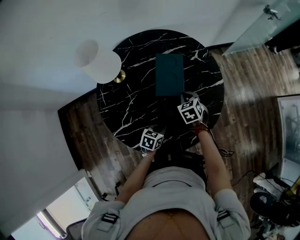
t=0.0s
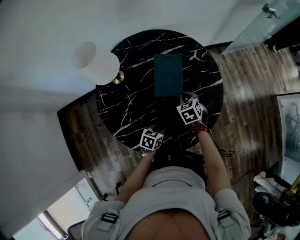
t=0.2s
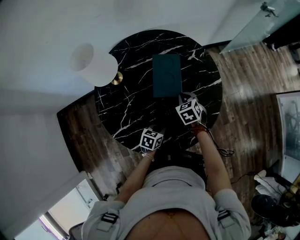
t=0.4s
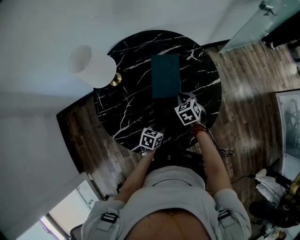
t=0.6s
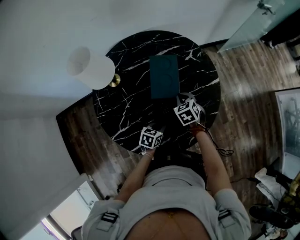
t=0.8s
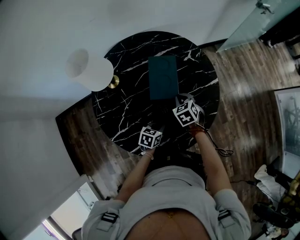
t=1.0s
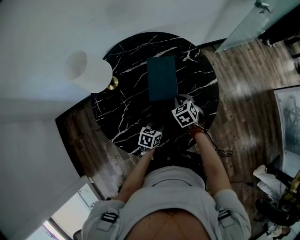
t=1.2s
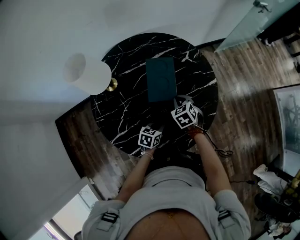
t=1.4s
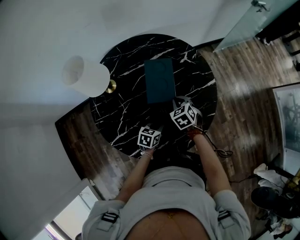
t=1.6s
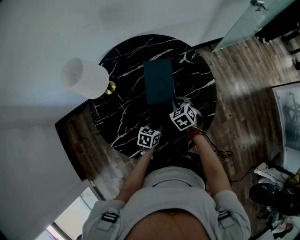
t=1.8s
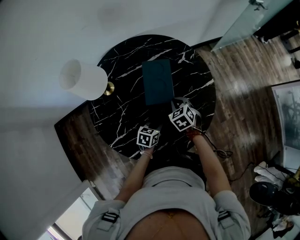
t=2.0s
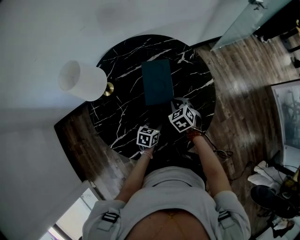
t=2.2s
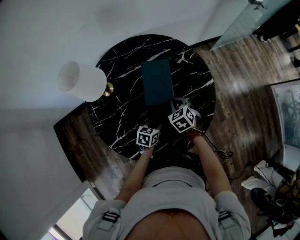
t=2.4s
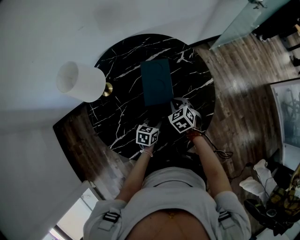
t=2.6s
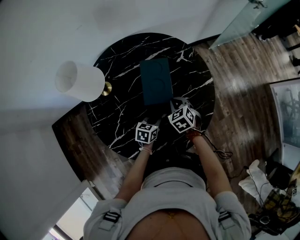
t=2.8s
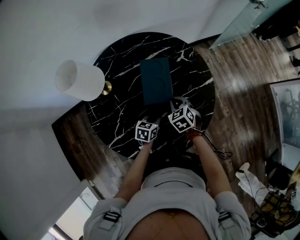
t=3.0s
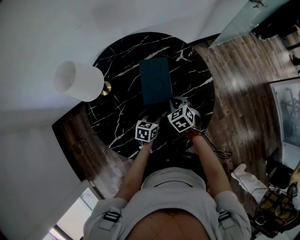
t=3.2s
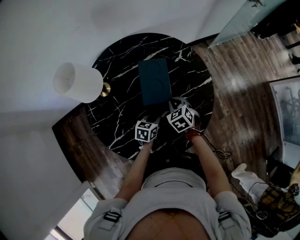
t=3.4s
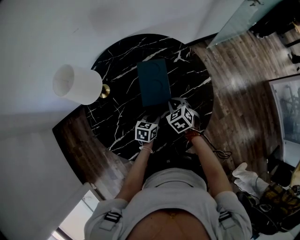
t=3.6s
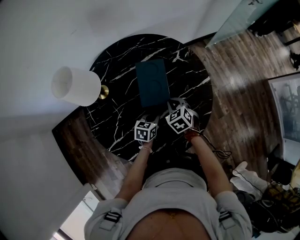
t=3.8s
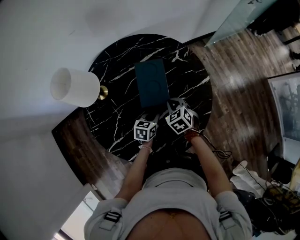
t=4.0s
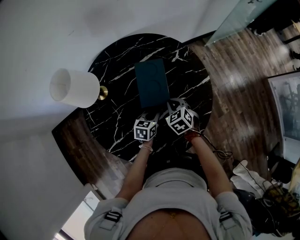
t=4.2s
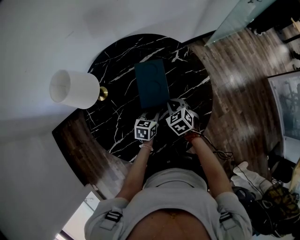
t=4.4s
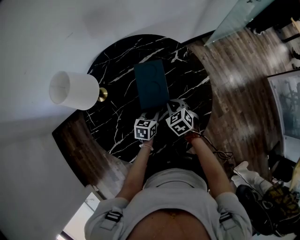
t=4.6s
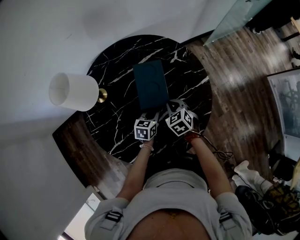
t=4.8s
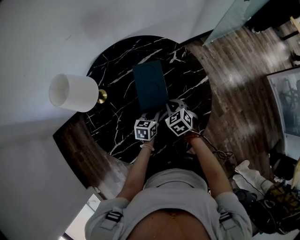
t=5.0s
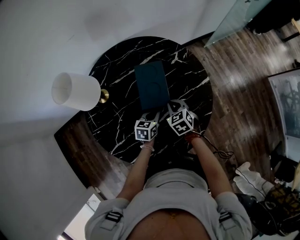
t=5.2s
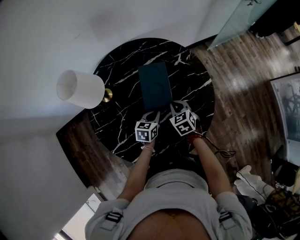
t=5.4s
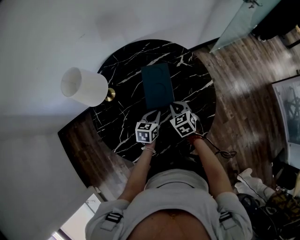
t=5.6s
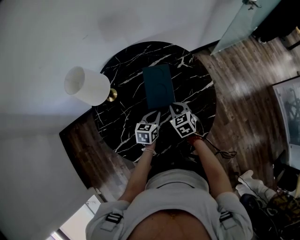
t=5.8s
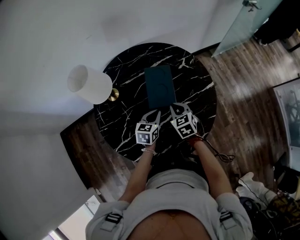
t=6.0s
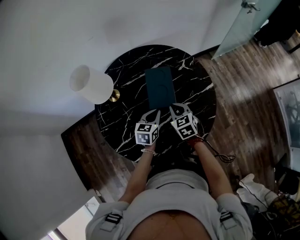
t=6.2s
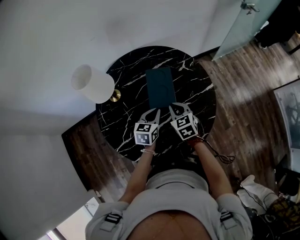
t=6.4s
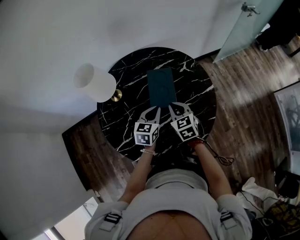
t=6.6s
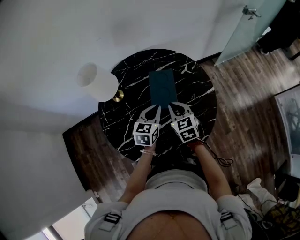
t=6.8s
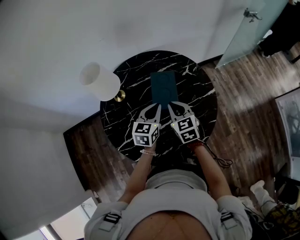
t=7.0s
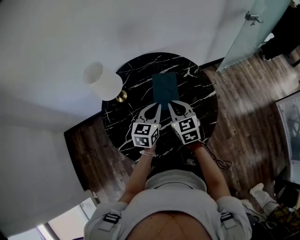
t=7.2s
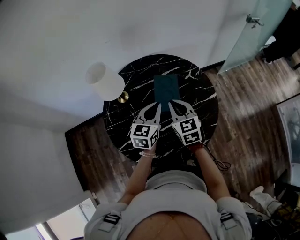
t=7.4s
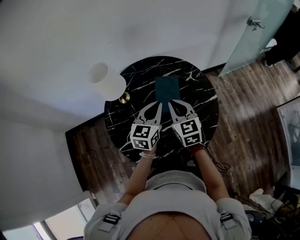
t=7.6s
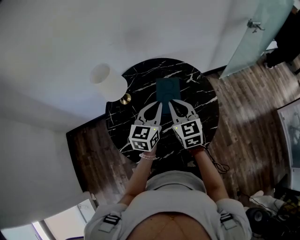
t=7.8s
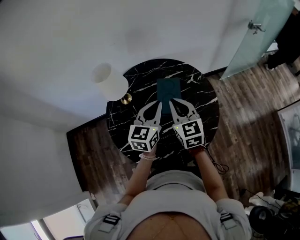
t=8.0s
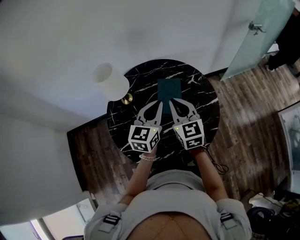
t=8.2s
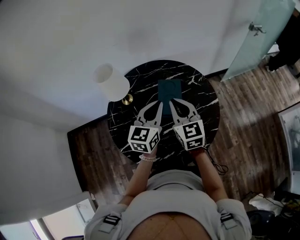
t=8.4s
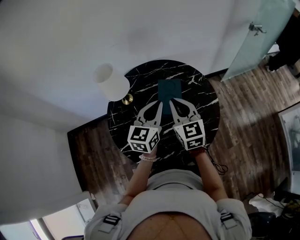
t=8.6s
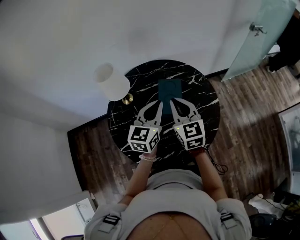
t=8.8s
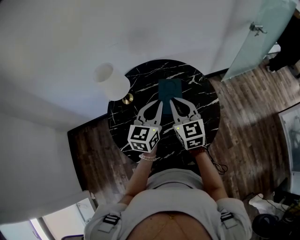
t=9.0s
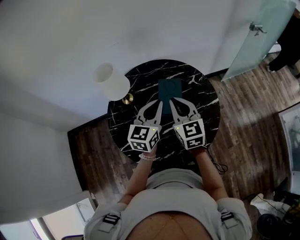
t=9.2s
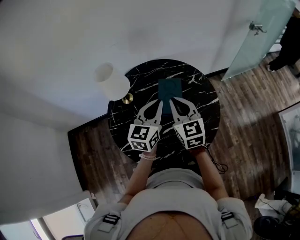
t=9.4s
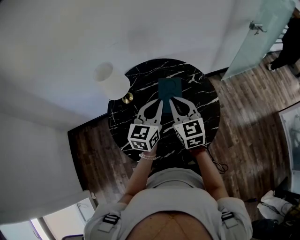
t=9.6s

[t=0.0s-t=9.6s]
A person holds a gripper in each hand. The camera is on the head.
t=0.0s to t=1.6s: The grippers move only a little.
t=1.6s to t=3.2s: The left gripper shifts some 5 cm forward.
t=3.2s to t=4.8s: The grippers make only small movements.
t=4.8s to t=6.4s: The left gripper moves upward, some 10 cm; the right gripper heads upward, covering some 10 cm.
t=6.4s to t=8.0s: The two grippers go some 20 cm upward. The left gripper swivels about 20 degrees, while the right gripper swivels some 20 degrees.
t=8.0s to t=9.6s: The grippers make only small movements.

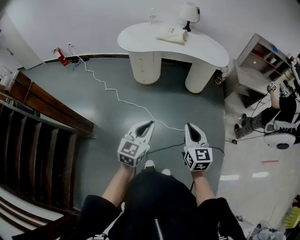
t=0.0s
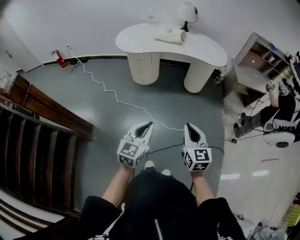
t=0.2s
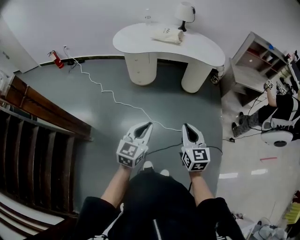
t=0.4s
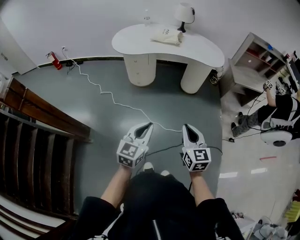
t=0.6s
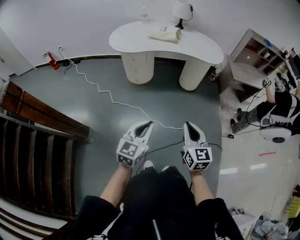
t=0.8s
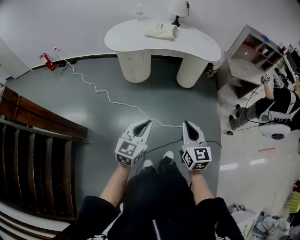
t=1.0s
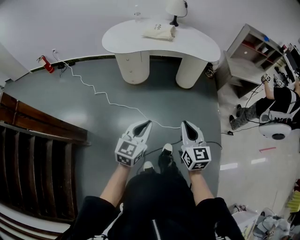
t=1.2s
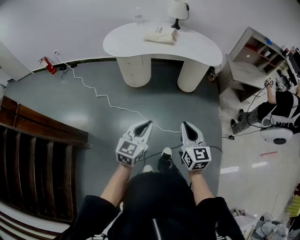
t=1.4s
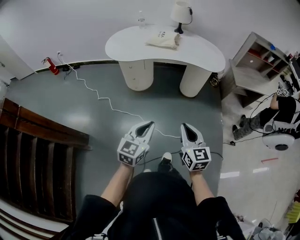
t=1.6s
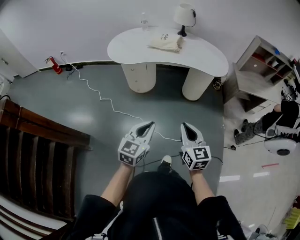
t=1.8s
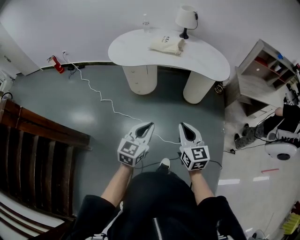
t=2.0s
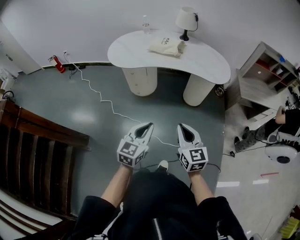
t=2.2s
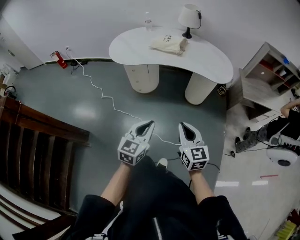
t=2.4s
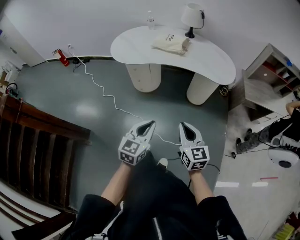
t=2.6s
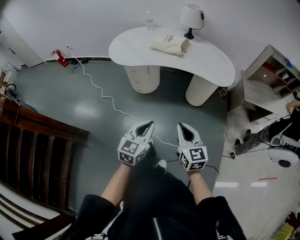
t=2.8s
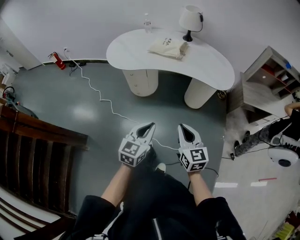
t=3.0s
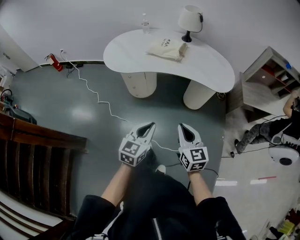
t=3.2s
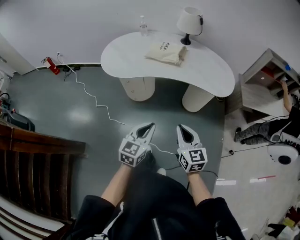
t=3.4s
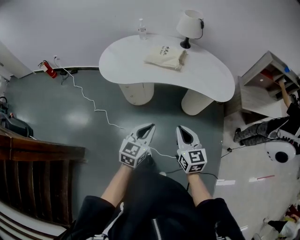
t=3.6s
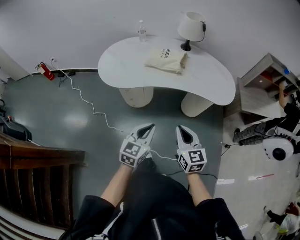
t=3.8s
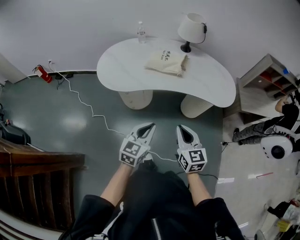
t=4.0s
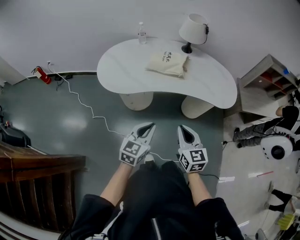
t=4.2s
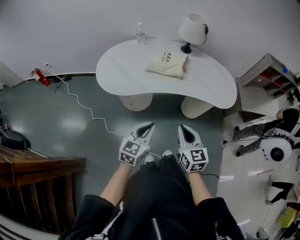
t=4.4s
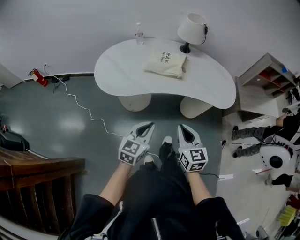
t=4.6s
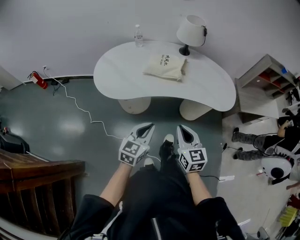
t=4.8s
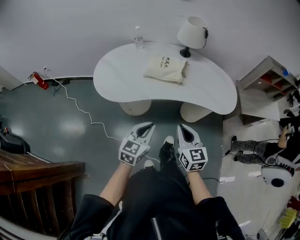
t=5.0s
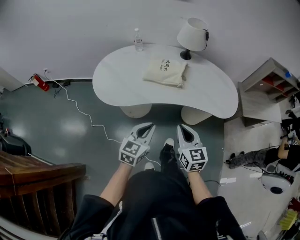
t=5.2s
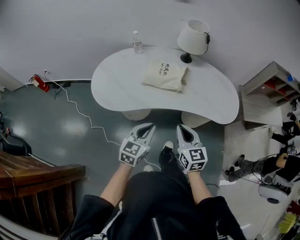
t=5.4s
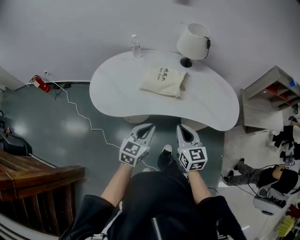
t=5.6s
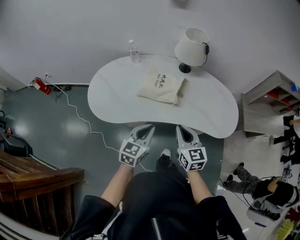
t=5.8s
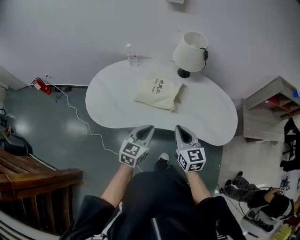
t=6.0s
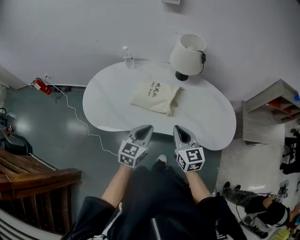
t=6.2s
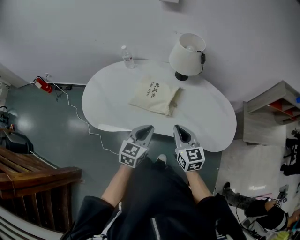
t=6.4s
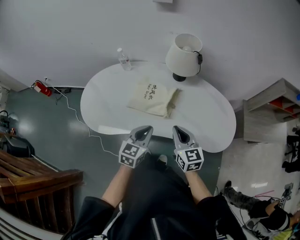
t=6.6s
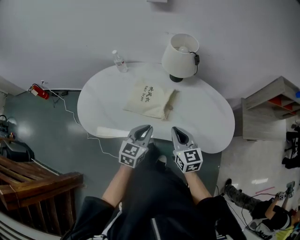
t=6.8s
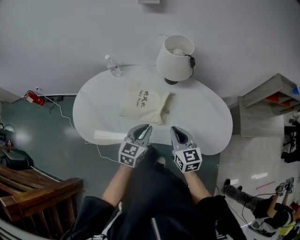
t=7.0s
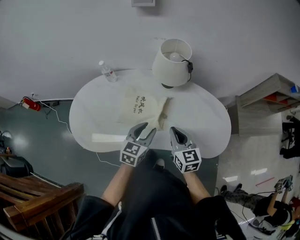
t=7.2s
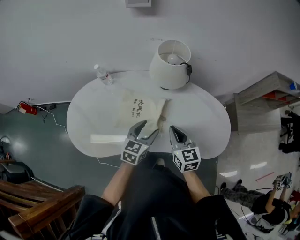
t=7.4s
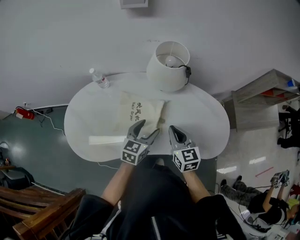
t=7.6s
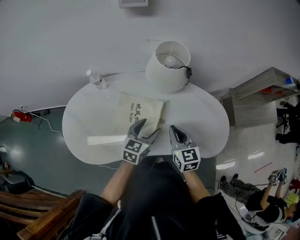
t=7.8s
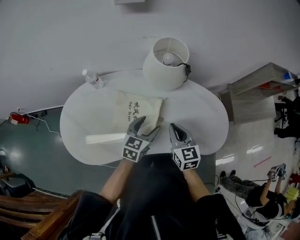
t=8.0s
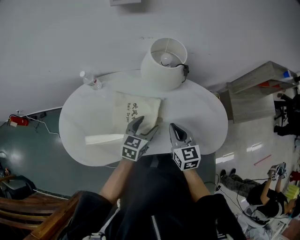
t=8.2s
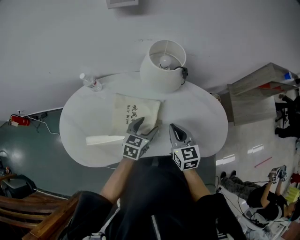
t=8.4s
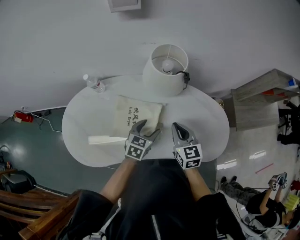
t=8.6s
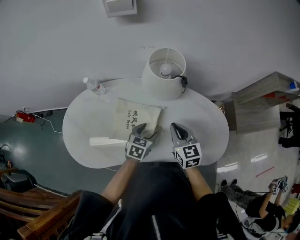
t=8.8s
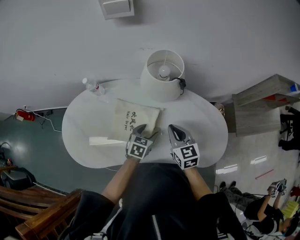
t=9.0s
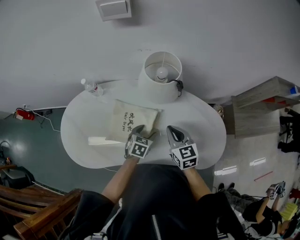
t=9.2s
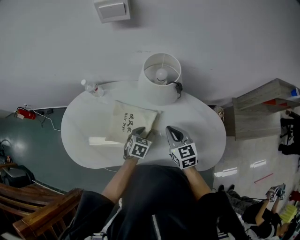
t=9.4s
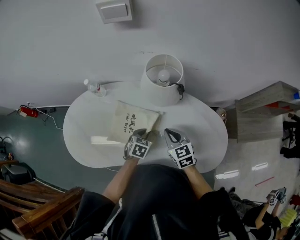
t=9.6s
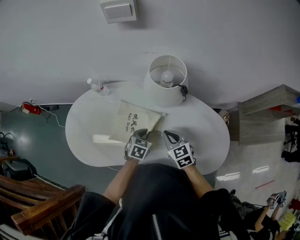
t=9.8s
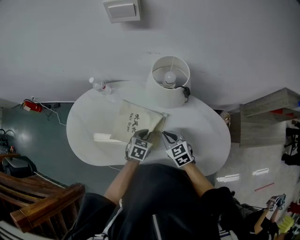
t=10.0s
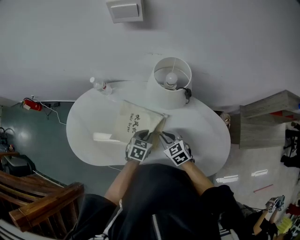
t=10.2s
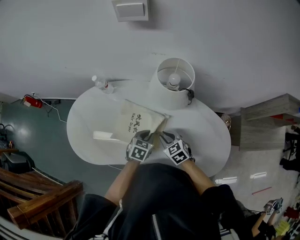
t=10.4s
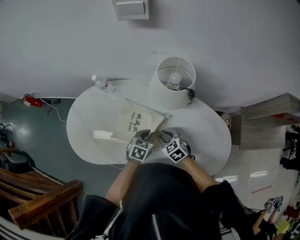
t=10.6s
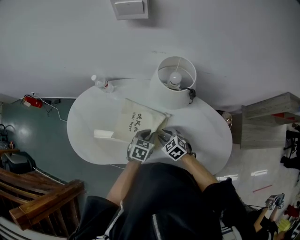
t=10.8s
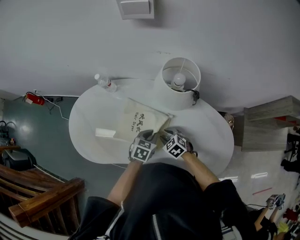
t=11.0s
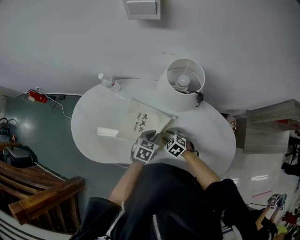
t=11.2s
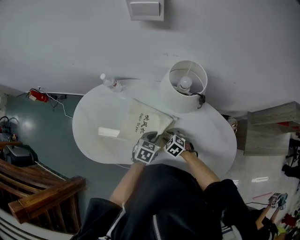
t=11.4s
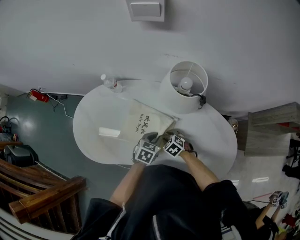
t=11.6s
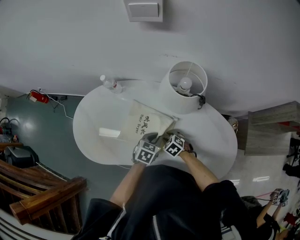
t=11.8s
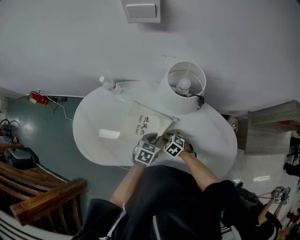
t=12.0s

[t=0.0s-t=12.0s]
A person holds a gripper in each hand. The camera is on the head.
t=0.0s to t=1.6s: Both grippers travel together forward, roughly 10 cm.
t=1.6s to t=3.0s: The two grippers go roughly 15 cm forward.
t=3.0s to t=4.4s: The two grippers go approximately 20 cm forward and to the left.
t=4.4s to t=6.0s: Both grippers move forward, some 25 cm.
t=6.0s to t=7.6s: The grippers both shift forward by roughly 20 cm. The left gripper opens its fingers.
t=7.6s to t=9.0s: The left gripper moves downward, about 10 cm, and rotates some 20 degrees; the right gripper shifts approximately 5 cm forward.
t=9.0s to t=10.4s: The left gripper closes; the right gripper travels downward and to the left by about 10 cm, and swivels roughly 30 degrees.
t=10.4s to t=12.0s: The right gripper travels downward by roughly 10 cm, and turns by about 20 degrees.

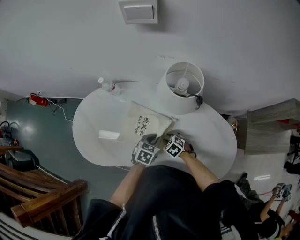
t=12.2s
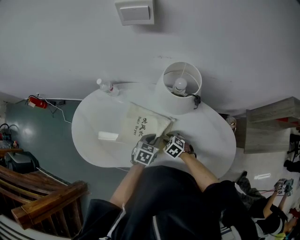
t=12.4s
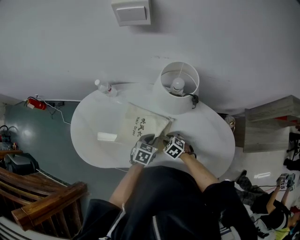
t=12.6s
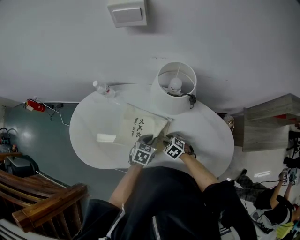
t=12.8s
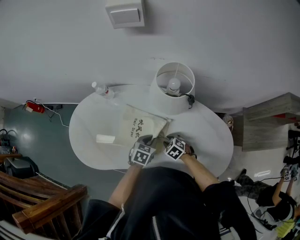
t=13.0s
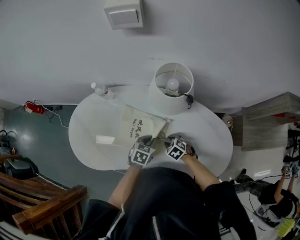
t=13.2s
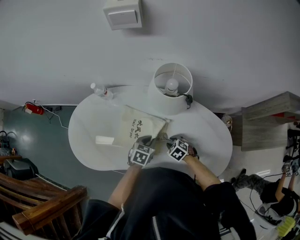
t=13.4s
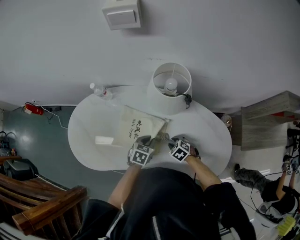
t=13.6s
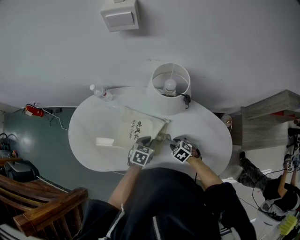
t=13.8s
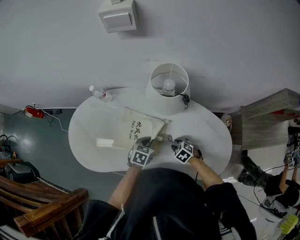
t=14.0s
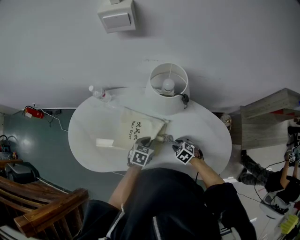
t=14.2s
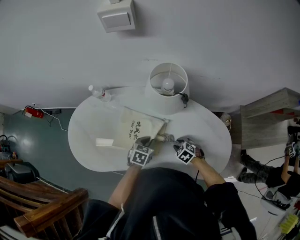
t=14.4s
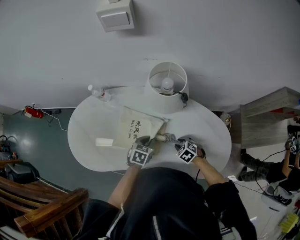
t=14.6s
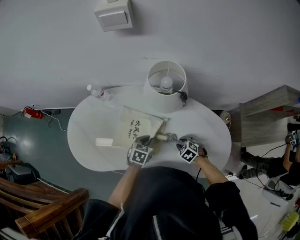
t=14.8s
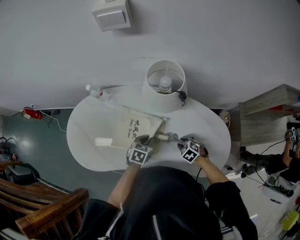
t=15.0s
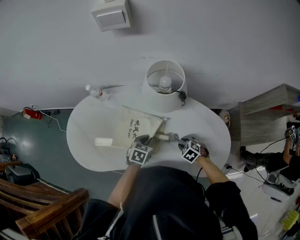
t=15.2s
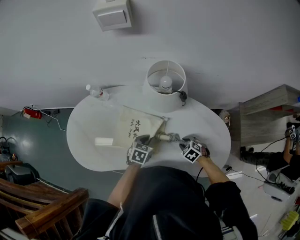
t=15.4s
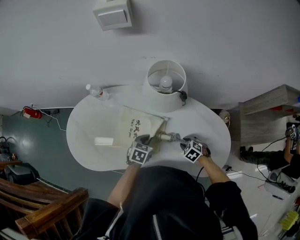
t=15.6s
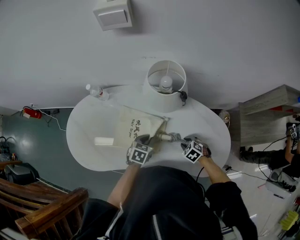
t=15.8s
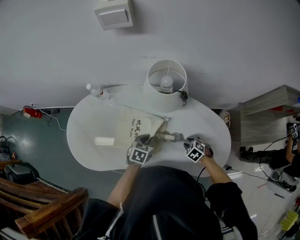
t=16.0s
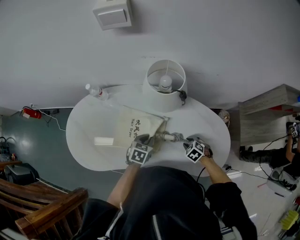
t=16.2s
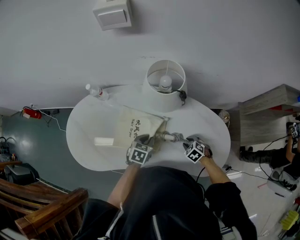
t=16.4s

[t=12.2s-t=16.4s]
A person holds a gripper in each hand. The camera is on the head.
t=12.2s to t=13.6s: The right gripper travels to the right by roughly 5 cm.
t=13.6s to t=15.0s: The right gripper is displaced to the right by about 5 cm.
t=15.0s to t=16.4s: The grippers stay close to where they were, moving slightly.
